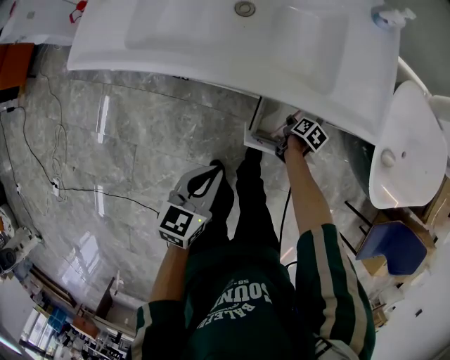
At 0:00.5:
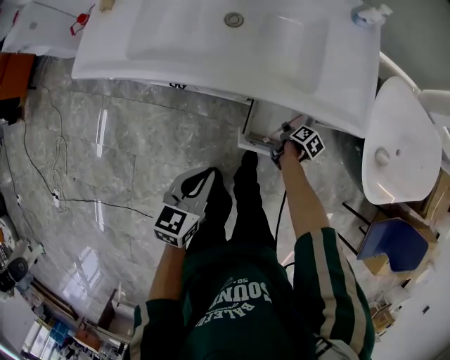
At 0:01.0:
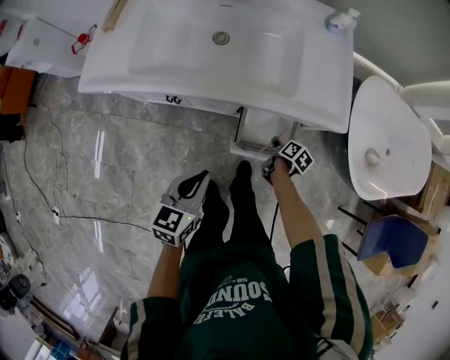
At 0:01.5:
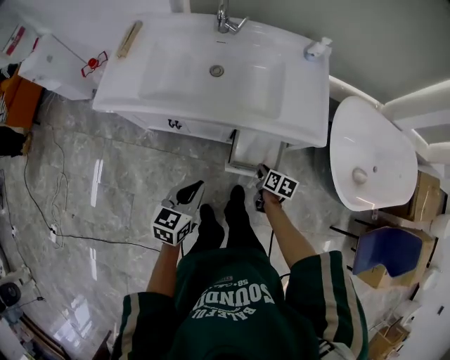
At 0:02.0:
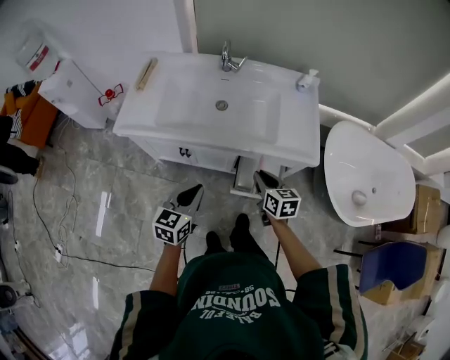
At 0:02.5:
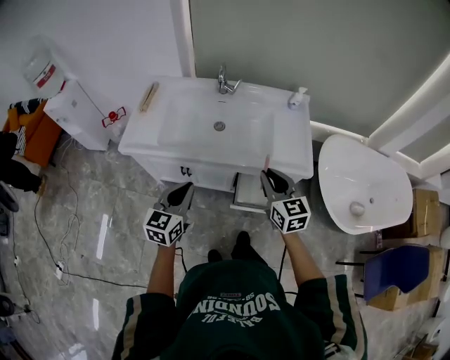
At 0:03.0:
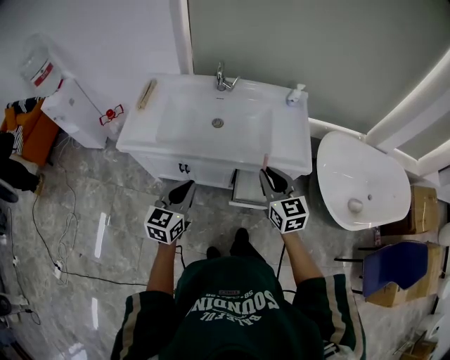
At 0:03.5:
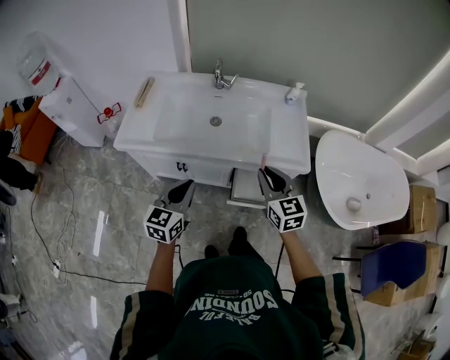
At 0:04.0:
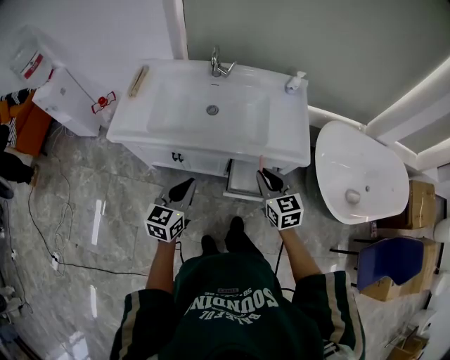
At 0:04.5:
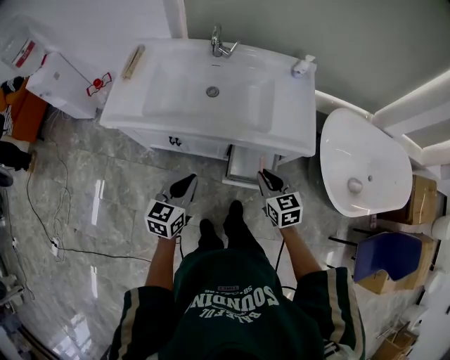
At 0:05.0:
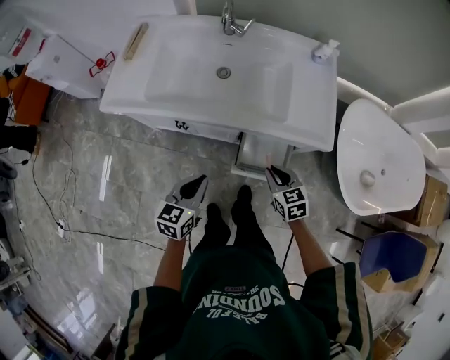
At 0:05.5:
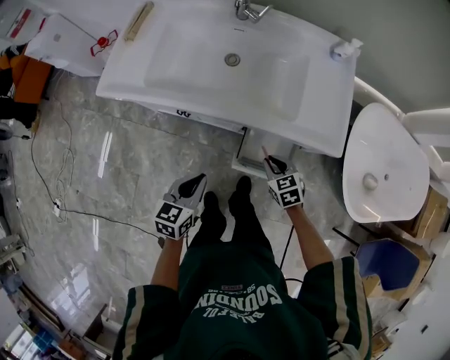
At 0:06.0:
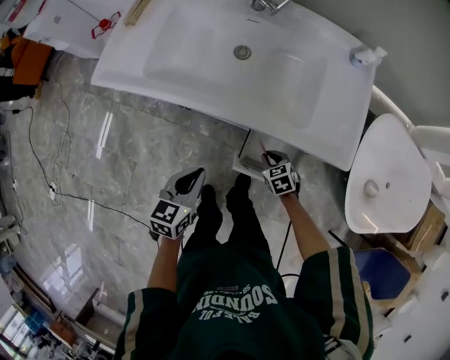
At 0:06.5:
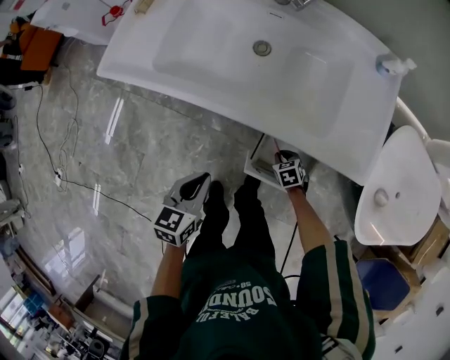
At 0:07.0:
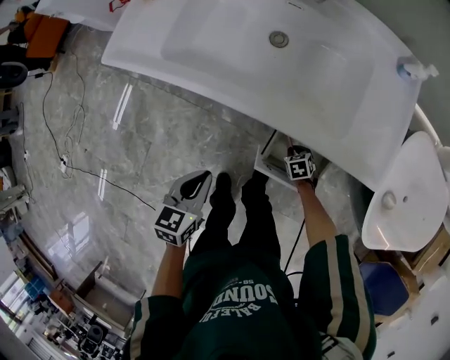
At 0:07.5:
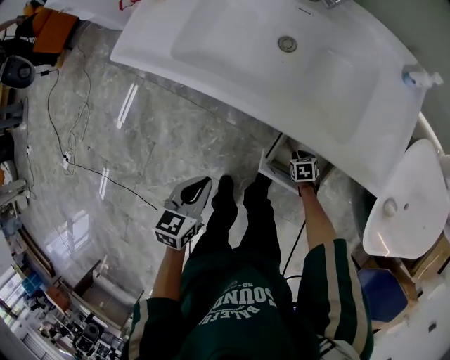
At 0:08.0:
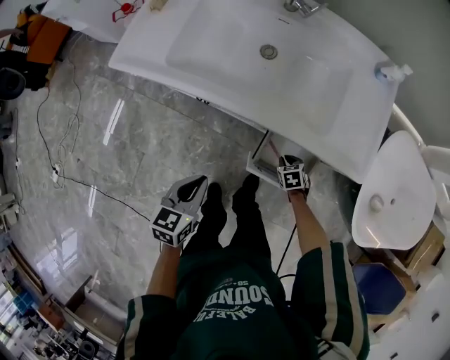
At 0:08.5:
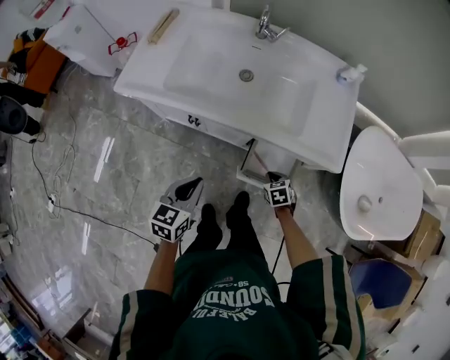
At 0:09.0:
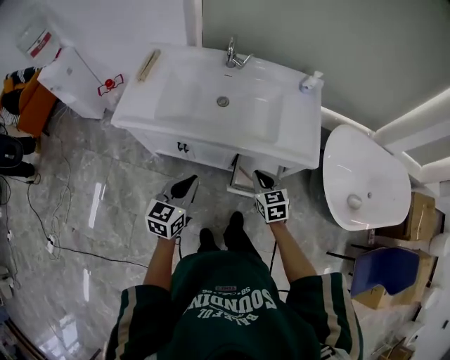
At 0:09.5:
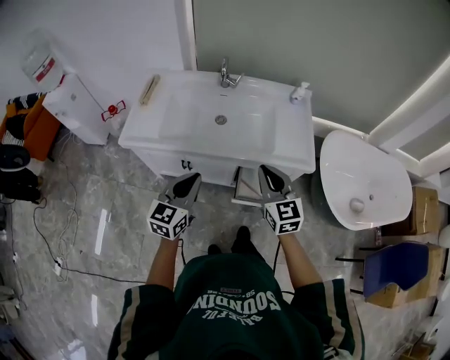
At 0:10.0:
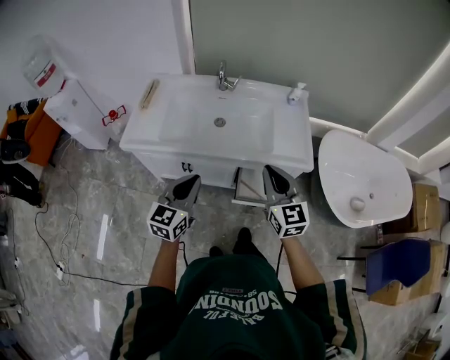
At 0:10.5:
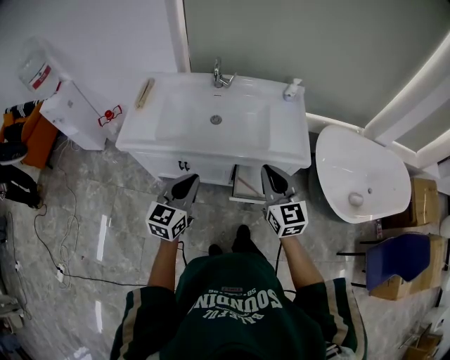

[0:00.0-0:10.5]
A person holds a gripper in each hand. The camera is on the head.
0:00.0 to 0:02.0: The right gripper moves upward, roughly 40 cm, and points its fingers some 30 degrees further upward. The left gripper moves upward, approximately 15 cm.
0:02.0 to 0:04.0: The right gripper moves upward, some 10 cm, and rotates roughly 20 degrees.
0:04.0 to 0:06.5: The left gripper moves downward, about 20 cm, and changes its angle by about 20 degrees. Meanwhile the right gripper moves downward, about 40 cm, and points its fingers about 50 degrees further downward.
0:06.5 to 0:08.5: The right gripper shifts about 15 cm upward, while the left gripper moves upward, roughly 5 cm.
0:08.5 to 0:10.5: The right gripper is displaced upward by approximately 40 cm, and points its fingers approximately 60 degrees further upward, while the left gripper travels upward by about 15 cm, and swivels roughly 30 degrees.

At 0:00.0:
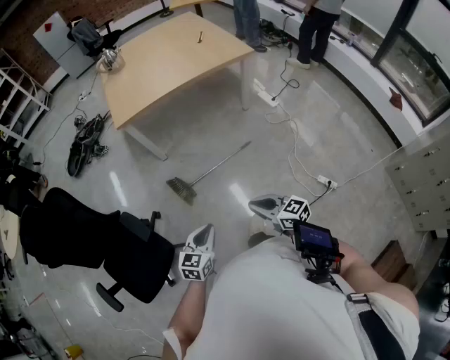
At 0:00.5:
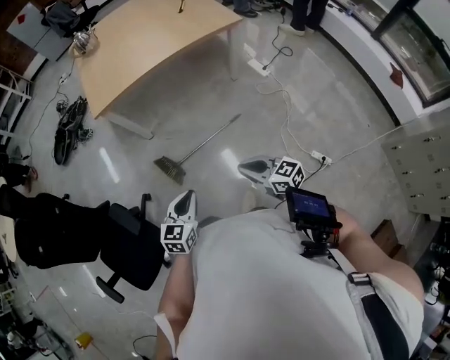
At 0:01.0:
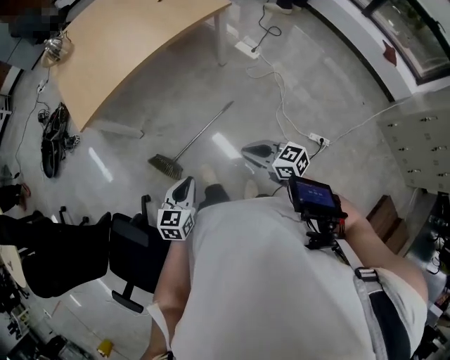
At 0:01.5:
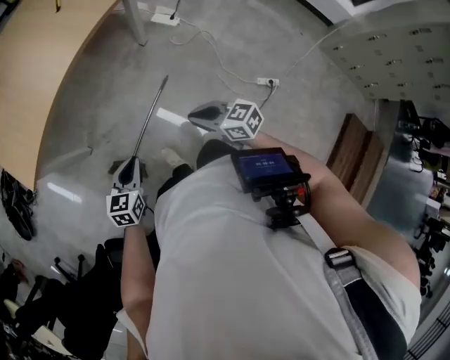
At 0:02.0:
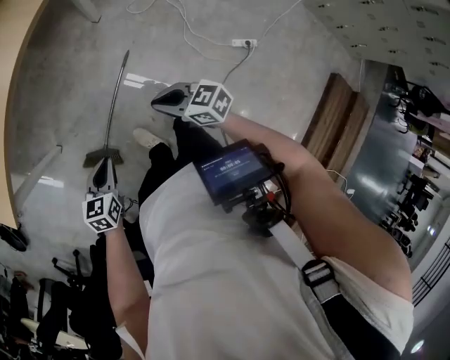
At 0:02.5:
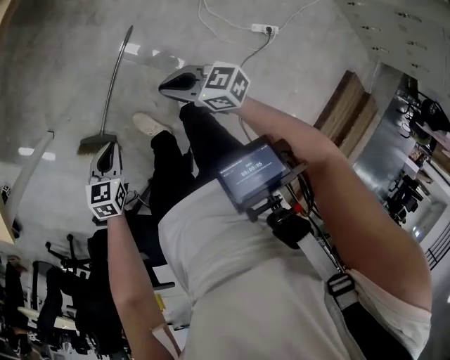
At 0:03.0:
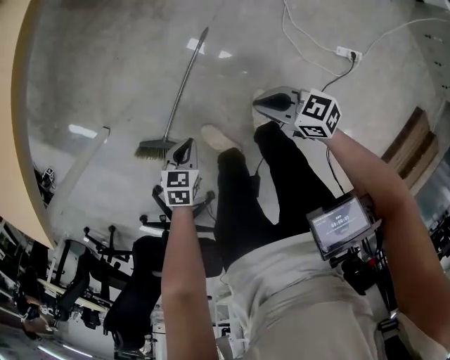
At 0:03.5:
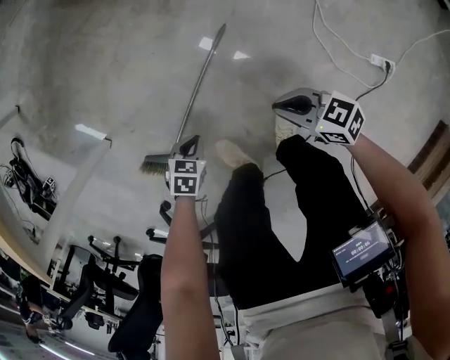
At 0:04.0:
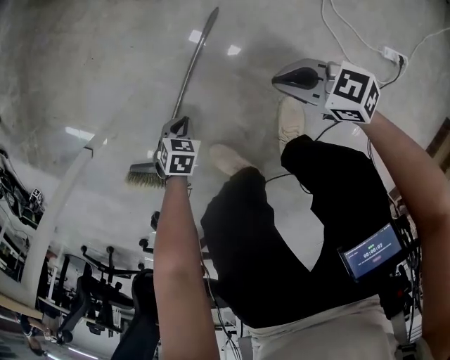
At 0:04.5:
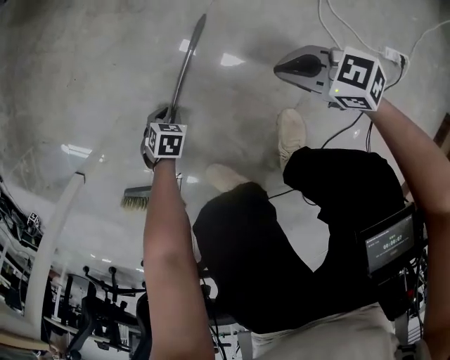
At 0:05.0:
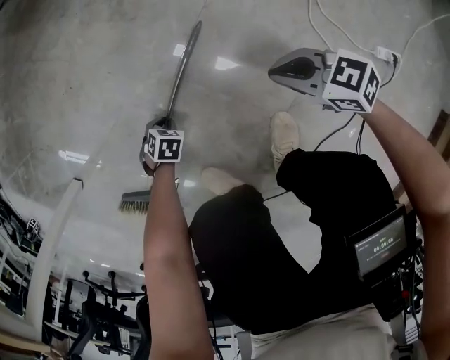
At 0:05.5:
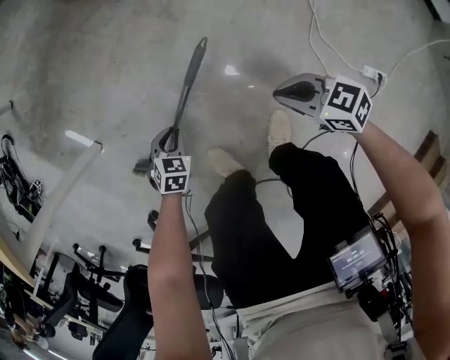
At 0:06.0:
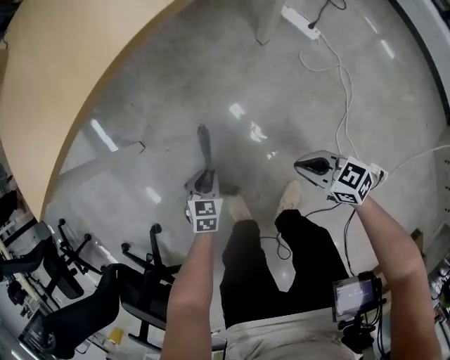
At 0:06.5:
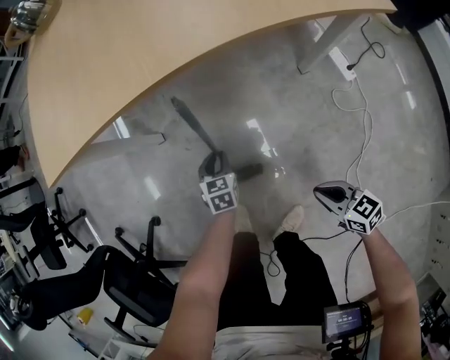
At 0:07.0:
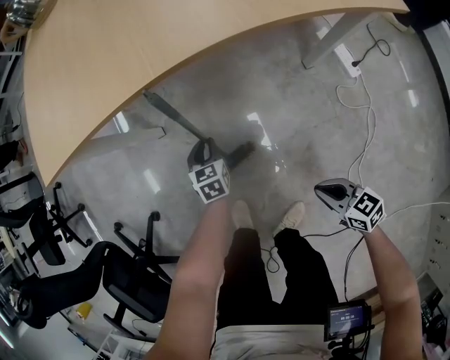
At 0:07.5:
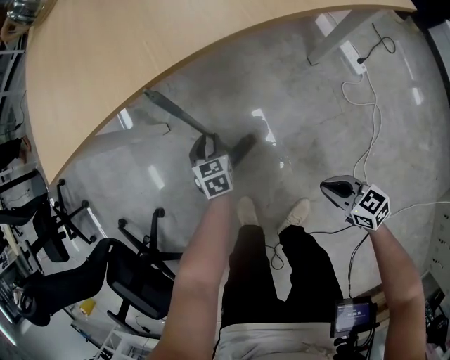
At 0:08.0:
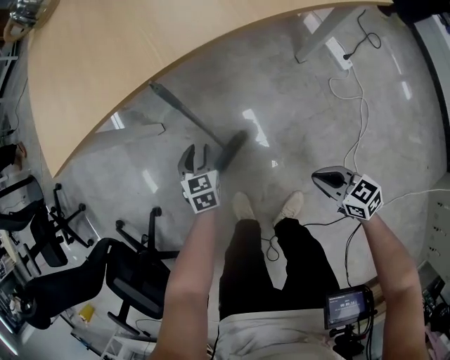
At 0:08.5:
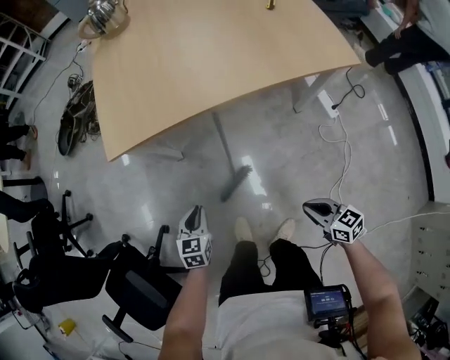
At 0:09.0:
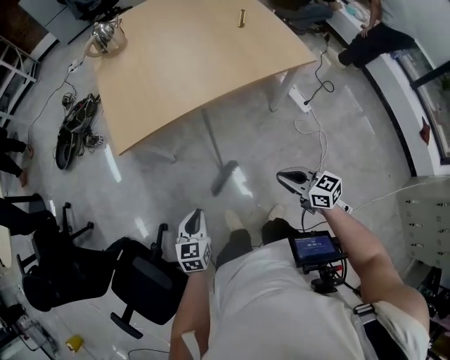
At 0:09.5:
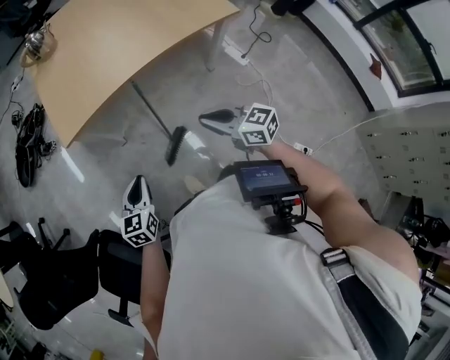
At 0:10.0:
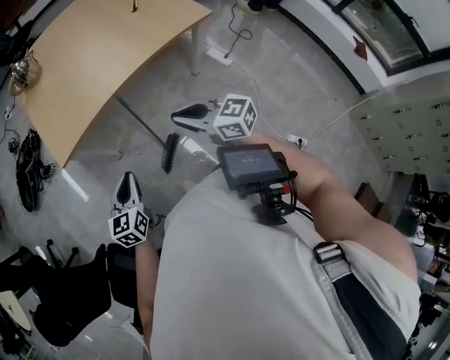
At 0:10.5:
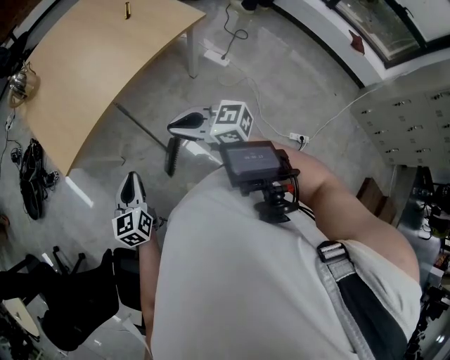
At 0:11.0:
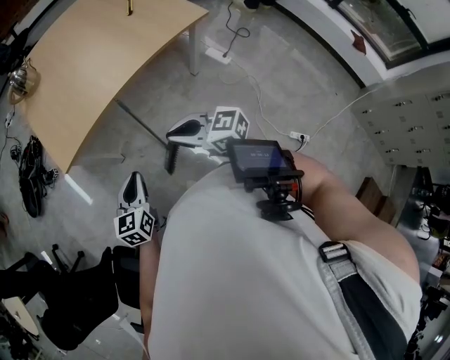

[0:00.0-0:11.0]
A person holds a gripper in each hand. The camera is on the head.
0:00.0 to 0:02.0: The right gripper ends up approximately 35 cm from where it was, and swivels some 20 degrees. The left gripper moves approximately 40 cm, and swivels about 30 degrees.
0:02.0 to 0:03.5: Both grippers move downward, approximately 35 cm. The left gripper swivels about 30 degrees.
0:03.5 to 0:05.5: The left gripper moves downward, about 10 cm.
0:05.5 to 0:07.5: The right gripper ends up about 10 cm from where it was. Meanwhile the left gripper ends up some 20 cm from where it was, and turns by roughly 60 degrees.
0:07.5 to 0:09.0: The right gripper heads upward, covering about 25 cm, and swivels roughly 20 degrees. The left gripper shifts approximately 35 cm upward, backward and to the left, rotates some 20 degrees, and closes up.
0:09.0 to 0:11.0: The left gripper shifts approximately 10 cm upward. Meanwhile the right gripper shifts roughly 15 cm upward and to the left.

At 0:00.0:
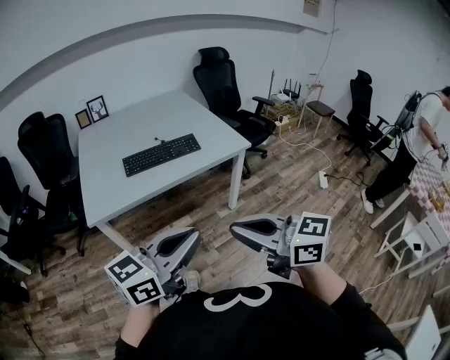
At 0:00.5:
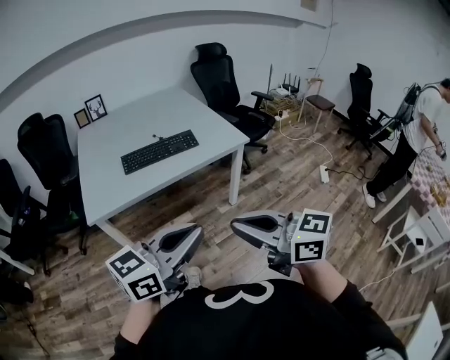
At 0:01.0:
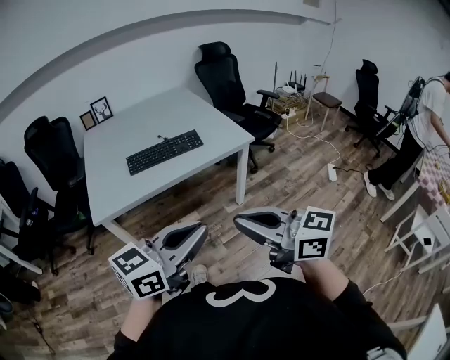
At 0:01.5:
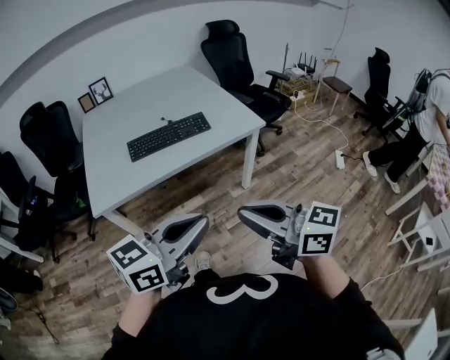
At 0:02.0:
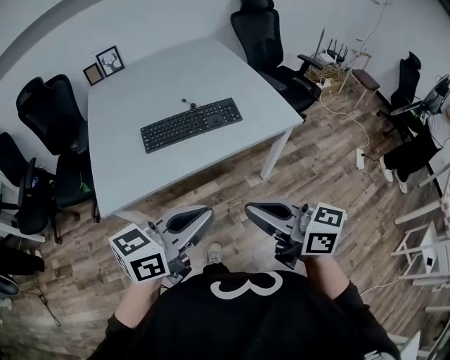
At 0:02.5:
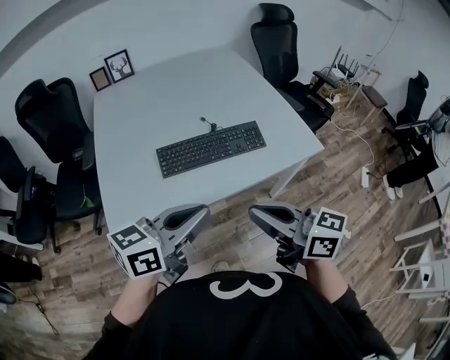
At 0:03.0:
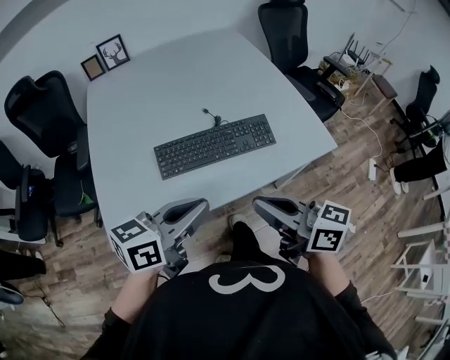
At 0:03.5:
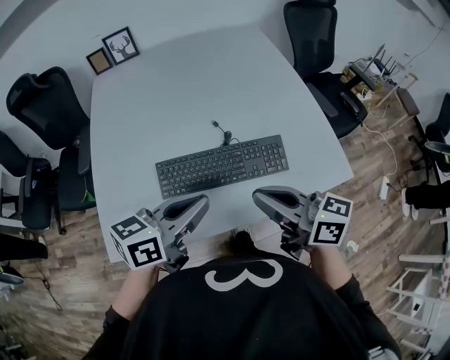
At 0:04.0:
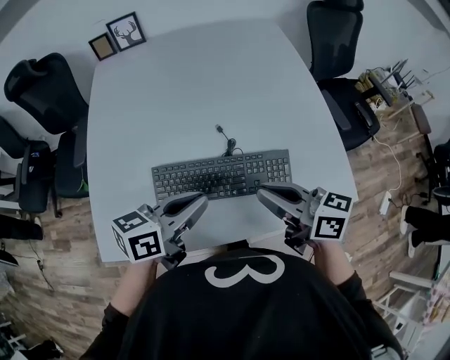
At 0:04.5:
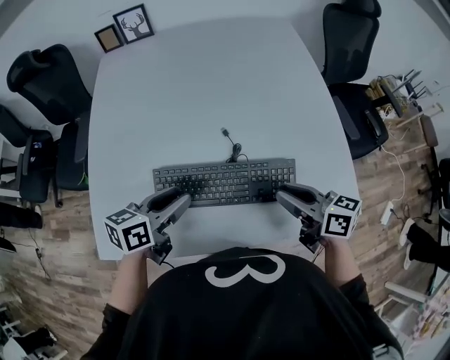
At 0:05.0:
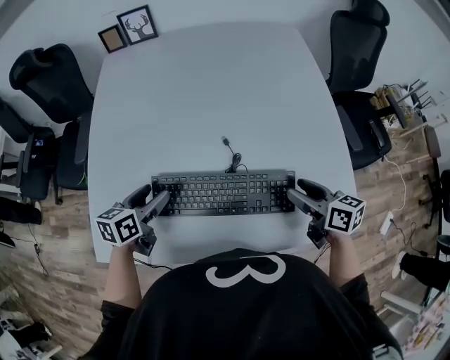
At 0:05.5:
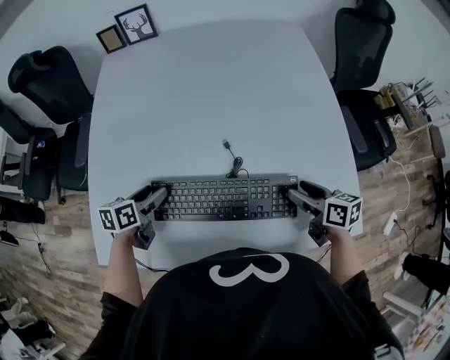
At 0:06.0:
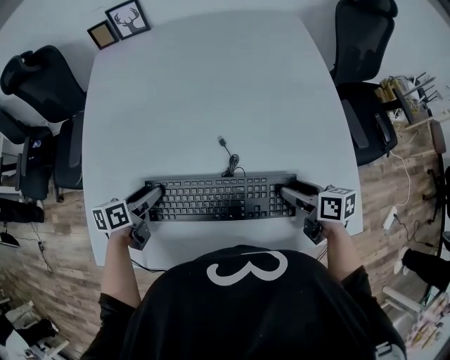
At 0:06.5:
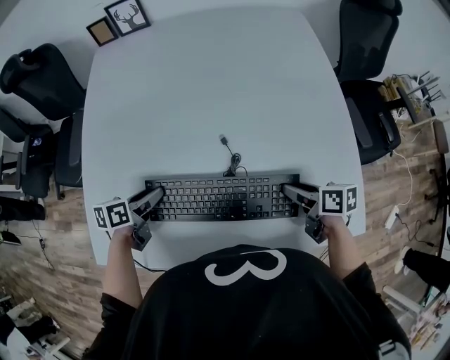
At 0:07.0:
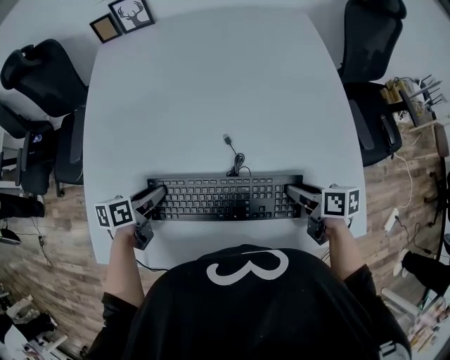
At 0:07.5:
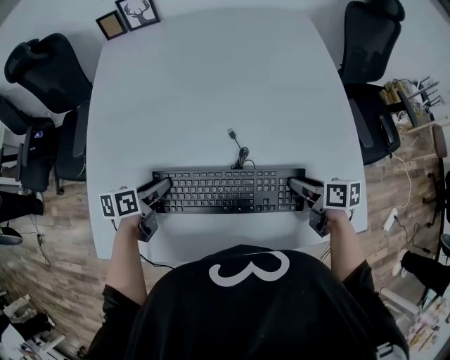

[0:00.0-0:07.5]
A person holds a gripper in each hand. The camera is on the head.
0:00.0 to 0:02.0: The two grippers go roughly 20 cm forward.
0:02.0 to 0:04.0: The grippers both shift forward by some 40 cm. The left gripper swivels approximately 20 degrees.
0:04.0 to 0:05.5: The left gripper goes about 25 cm downward, to the left and forward, changes its angle by roughly 30 degrees, and opens up; the right gripper heads downward, to the right and forward, covering approximately 25 cm, turns by roughly 30 degrees, and opens.
0:05.5 to 0:07.5: The right gripper closes up. The left gripper closes.
